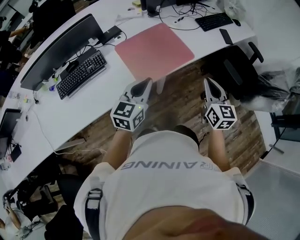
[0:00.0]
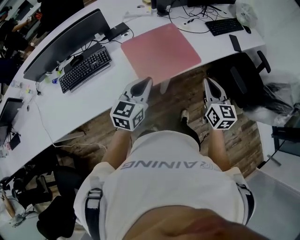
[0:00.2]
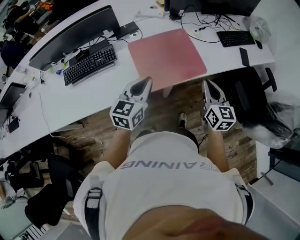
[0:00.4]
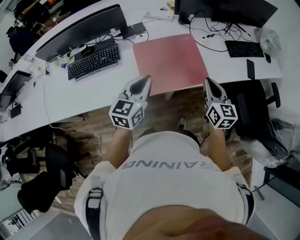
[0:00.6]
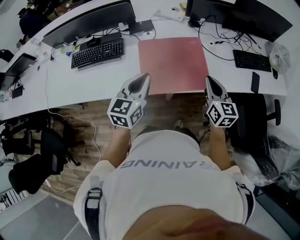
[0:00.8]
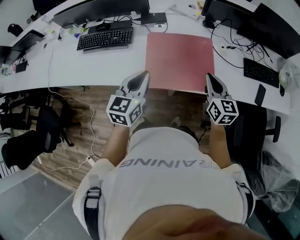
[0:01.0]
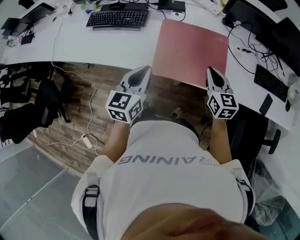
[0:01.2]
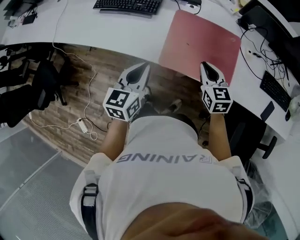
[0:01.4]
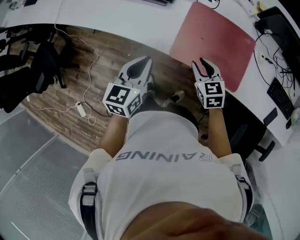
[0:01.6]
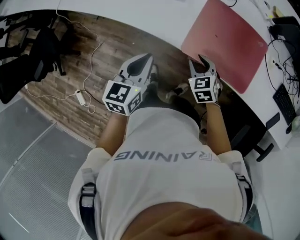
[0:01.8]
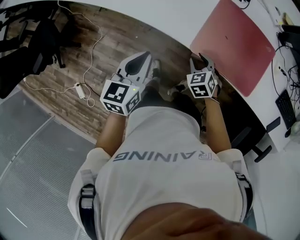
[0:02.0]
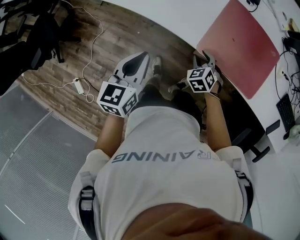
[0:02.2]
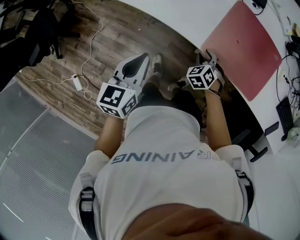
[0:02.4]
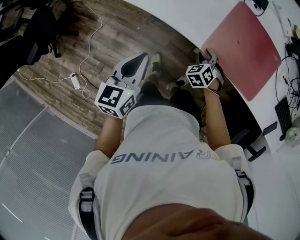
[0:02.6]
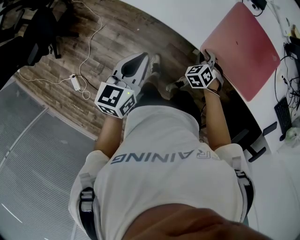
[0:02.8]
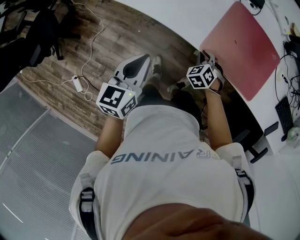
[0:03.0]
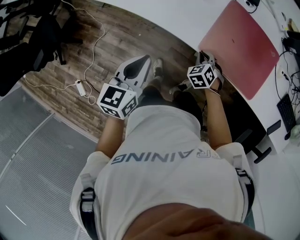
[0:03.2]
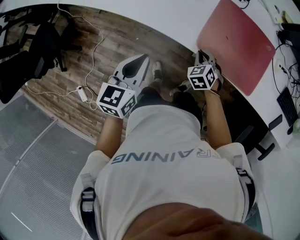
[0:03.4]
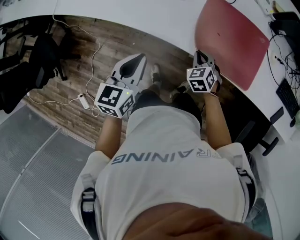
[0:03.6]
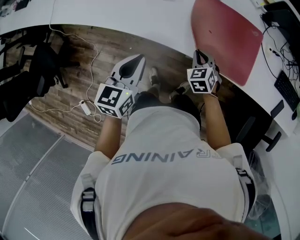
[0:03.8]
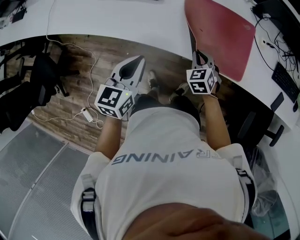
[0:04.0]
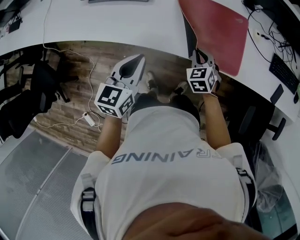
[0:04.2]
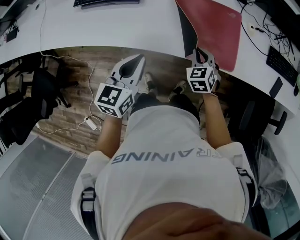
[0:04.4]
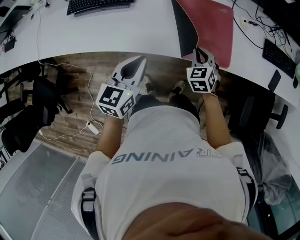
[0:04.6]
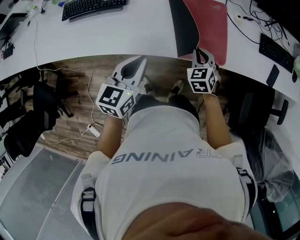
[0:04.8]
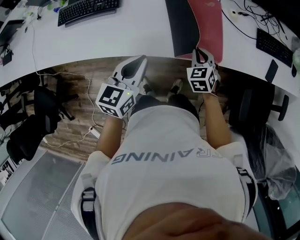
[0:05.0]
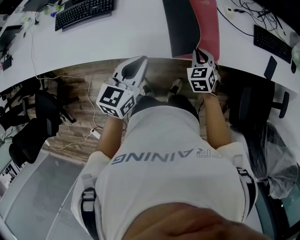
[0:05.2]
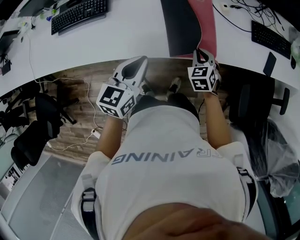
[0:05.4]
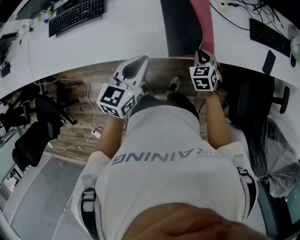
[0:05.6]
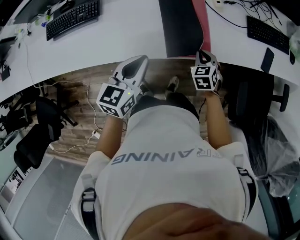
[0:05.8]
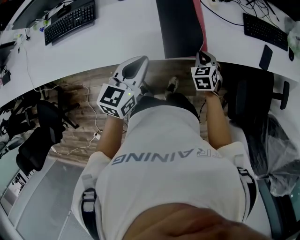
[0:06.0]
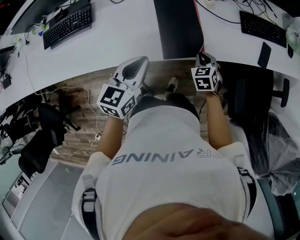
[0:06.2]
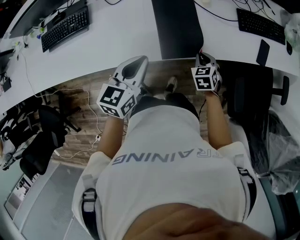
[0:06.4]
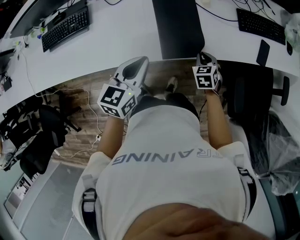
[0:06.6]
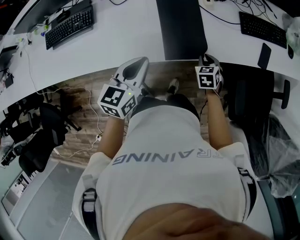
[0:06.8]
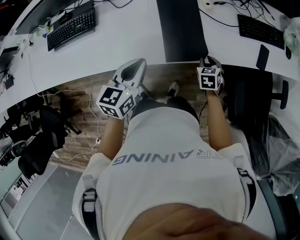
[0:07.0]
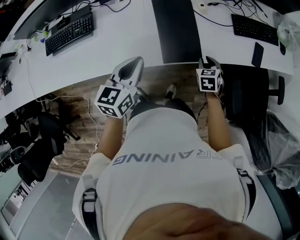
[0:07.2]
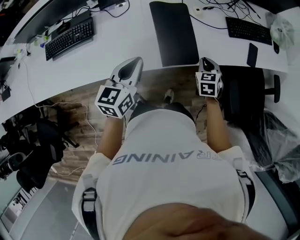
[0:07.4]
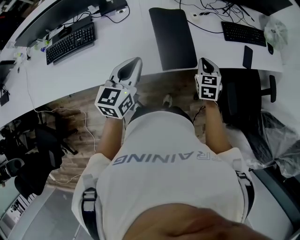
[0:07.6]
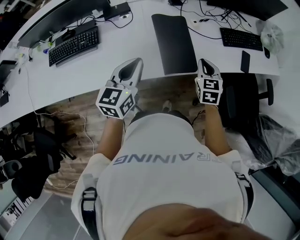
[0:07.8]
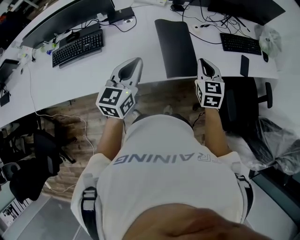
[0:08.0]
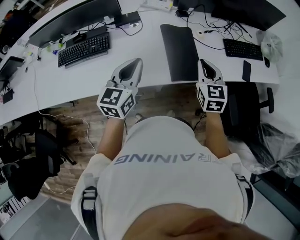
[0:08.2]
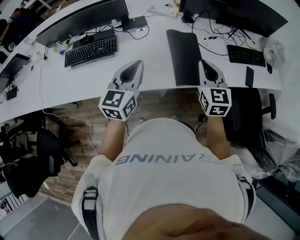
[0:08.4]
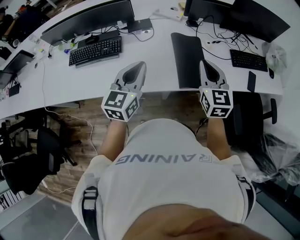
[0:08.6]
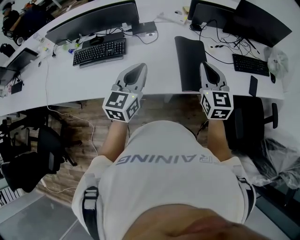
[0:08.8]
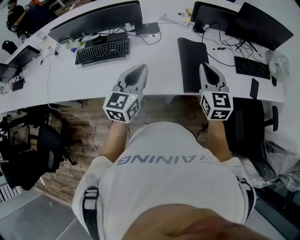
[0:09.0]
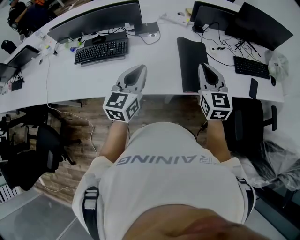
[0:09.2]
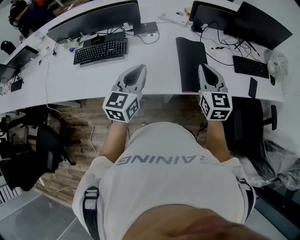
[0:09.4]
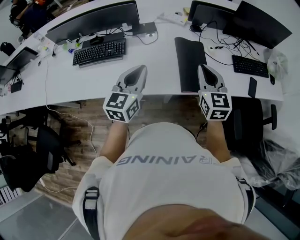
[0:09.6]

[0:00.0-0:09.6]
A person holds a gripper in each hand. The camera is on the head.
0:00.0 to 0:01.6: The left gripper travels downward by about 10 cm, and changes its angle by roughly 60 degrees; the right gripper changes place by about 30 cm, turns by about 70 degrees, and opens.
0:01.6 to 0:03.2: The right gripper moves downward and to the left, about 20 cm, turns by roughly 30 degrees, and closes its fingers. Meanwhile the left gripper travels to the left and downward by about 15 cm.
0:03.2 to 0:04.8: The right gripper heads to the right and upward, covering roughly 25 cm, and swivels approximately 40 degrees, while the left gripper travels to the right and forward by about 20 cm, and rotates approximately 30 degrees.
0:04.8 to 0:06.4: The right gripper goes some 20 cm to the right, while the left gripper travels to the right and forward by roughly 15 cm.
0:06.4 to 0:08.0: The right gripper goes about 25 cm upward, and changes its angle by some 30 degrees. Meanwhile the left gripper heads upward and to the left, covering approximately 15 cm.
0:08.0 to 0:09.6: The left gripper travels to the left by some 5 cm. The right gripper heads to the left and upward, covering some 15 cm.

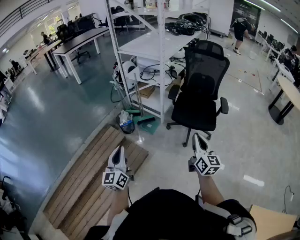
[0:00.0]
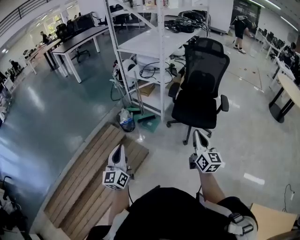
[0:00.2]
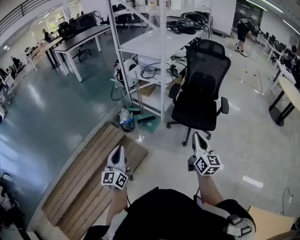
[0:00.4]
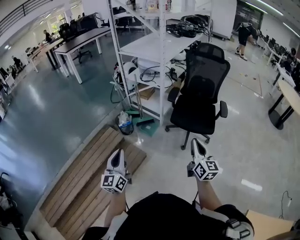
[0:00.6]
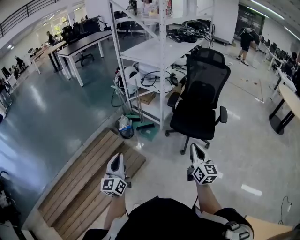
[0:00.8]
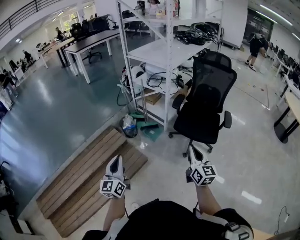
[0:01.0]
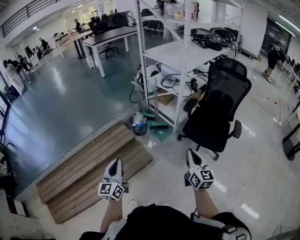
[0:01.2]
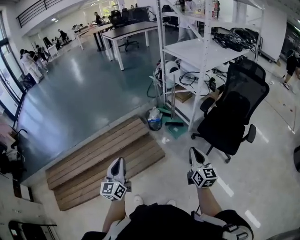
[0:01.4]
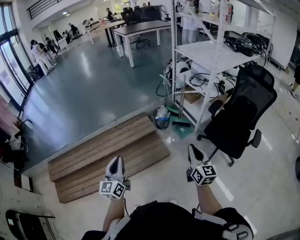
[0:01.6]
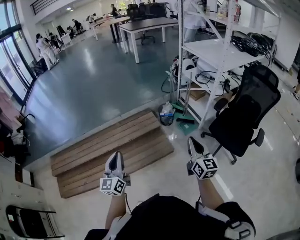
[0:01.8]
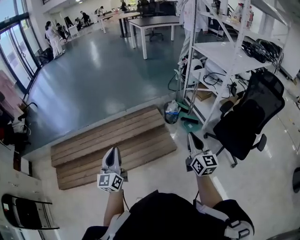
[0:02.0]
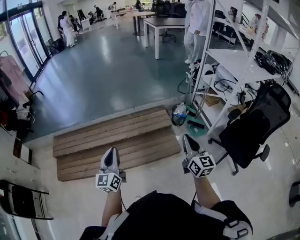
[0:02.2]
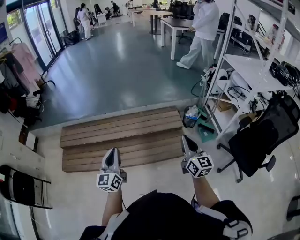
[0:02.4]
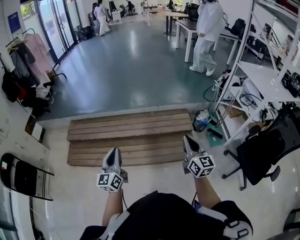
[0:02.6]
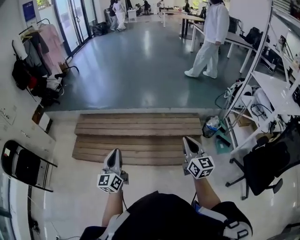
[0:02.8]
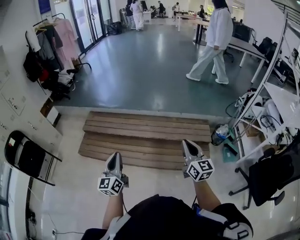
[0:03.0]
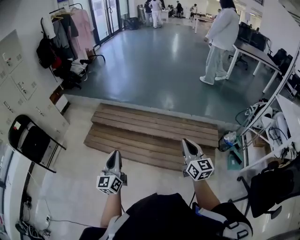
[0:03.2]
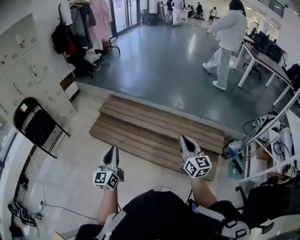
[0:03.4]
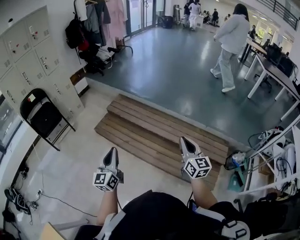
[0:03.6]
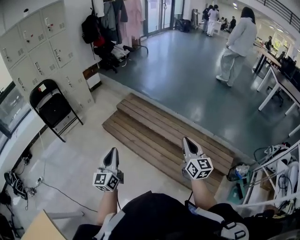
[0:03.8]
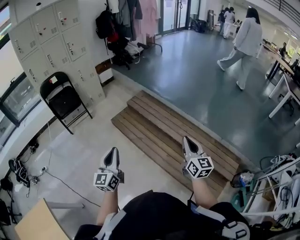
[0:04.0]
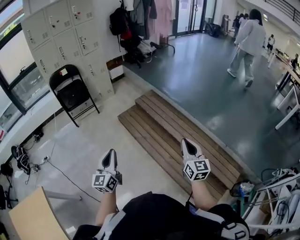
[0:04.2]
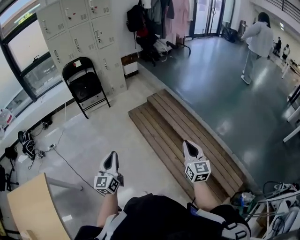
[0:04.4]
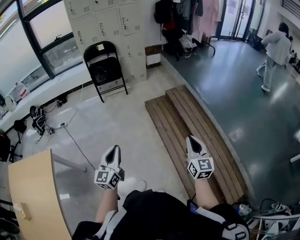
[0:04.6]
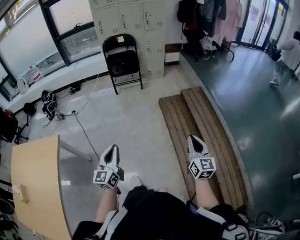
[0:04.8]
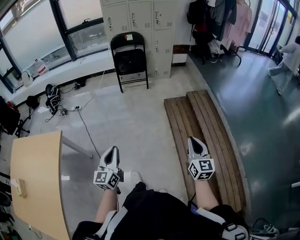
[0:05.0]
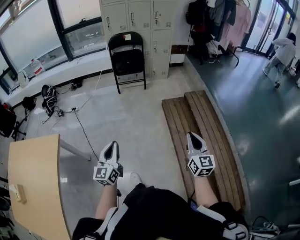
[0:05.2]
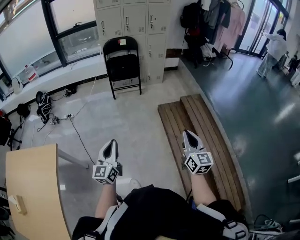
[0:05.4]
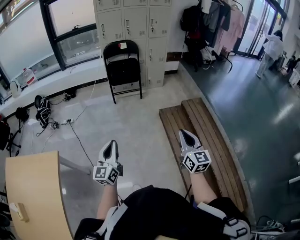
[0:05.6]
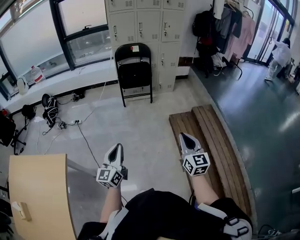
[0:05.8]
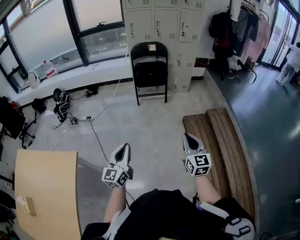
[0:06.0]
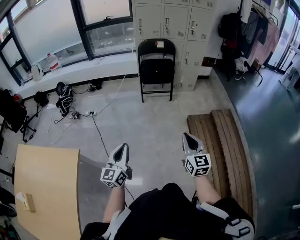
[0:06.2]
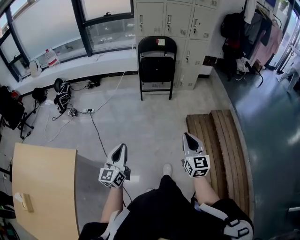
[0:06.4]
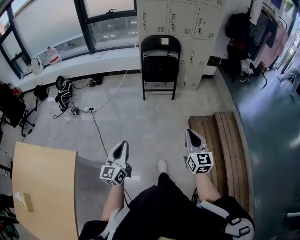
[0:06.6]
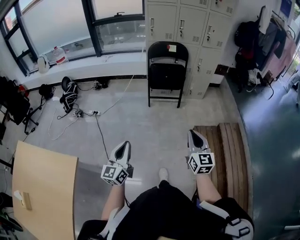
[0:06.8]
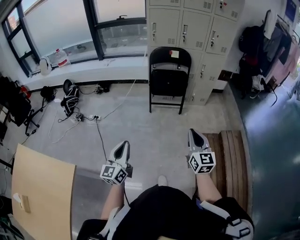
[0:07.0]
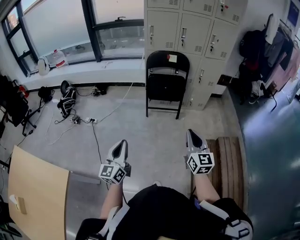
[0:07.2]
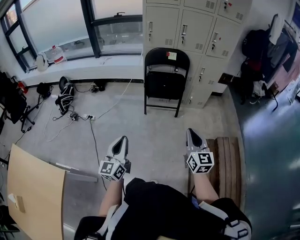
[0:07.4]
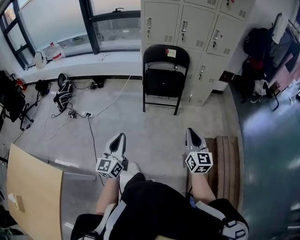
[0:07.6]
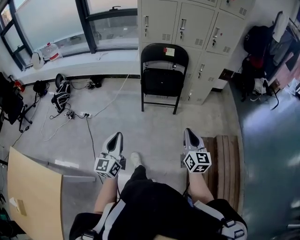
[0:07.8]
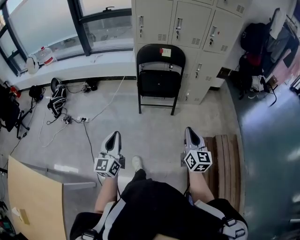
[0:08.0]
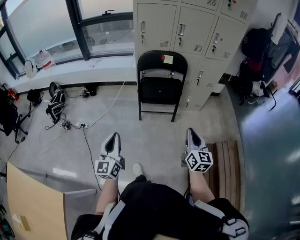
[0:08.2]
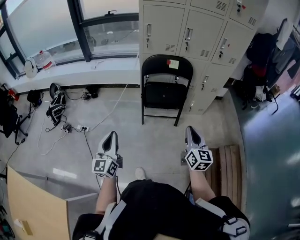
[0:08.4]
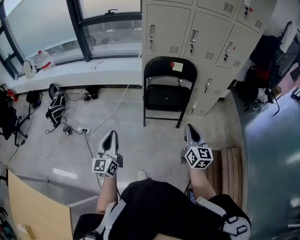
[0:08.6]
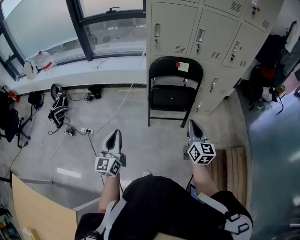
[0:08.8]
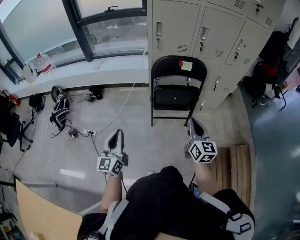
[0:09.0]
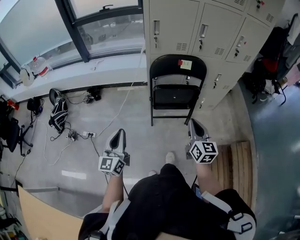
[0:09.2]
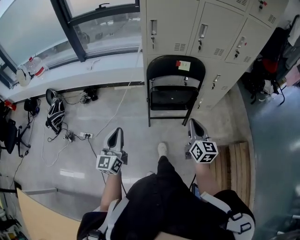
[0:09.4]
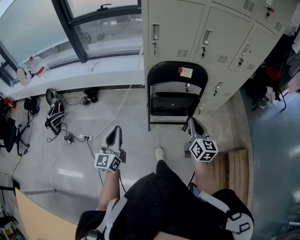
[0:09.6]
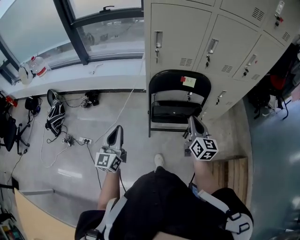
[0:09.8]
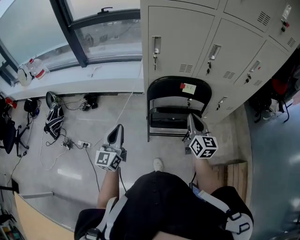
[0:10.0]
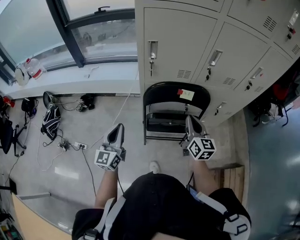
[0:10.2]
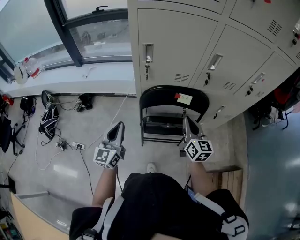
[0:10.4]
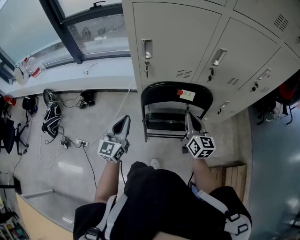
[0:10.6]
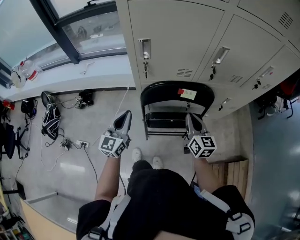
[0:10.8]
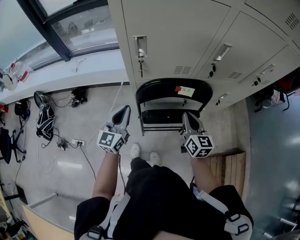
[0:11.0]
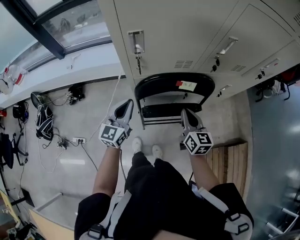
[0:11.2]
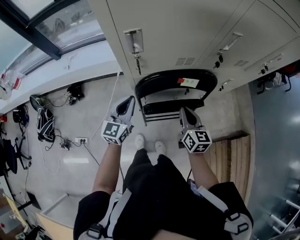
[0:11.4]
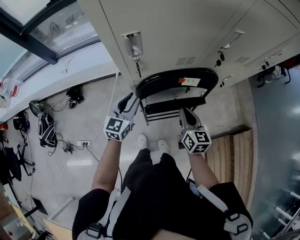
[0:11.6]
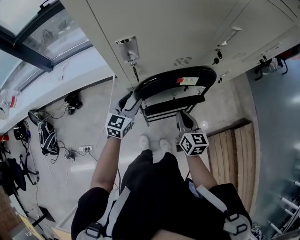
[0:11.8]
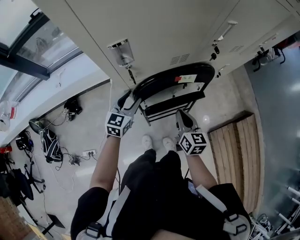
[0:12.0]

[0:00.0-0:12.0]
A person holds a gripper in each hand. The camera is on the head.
0:00.0 to 0:01.6: The right gripper ends up some 15 cm from where it was, and turns by about 30 degrees, while the left gripper shifts by roughly 15 cm, and turns by approximately 30 degrees.
0:01.6 to 0:03.0: The two grippers travel together, approximately 40 cm. The left gripper rotates about 40 degrees. Meanwhile the right gripper turns by about 40 degrees.
0:03.0 to 0:04.4: The left gripper moves roughly 20 cm, and swivels some 50 degrees; the right gripper ends up about 25 cm from where it was, and rotates approximately 50 degrees.
0:04.4 to 0:06.0: The right gripper goes some 50 cm to the left and forward, and swivels approximately 30 degrees; the left gripper is displaced to the left by some 30 cm.
0:06.0 to 0:07.6: Both grippers move forward, about 35 cm.
0:07.6 to 0:09.0: Both grippers move forward and to the left, roughly 30 cm.
0:09.0 to 0:10.4: The two grippers go about 30 cm forward.
0:10.4 to 0:12.0: The right gripper moves downward and to the left, some 15 cm, and turns by about 20 degrees. The left gripper moves forward and downward, some 25 cm, changes its angle by some 40 degrees, and opens.

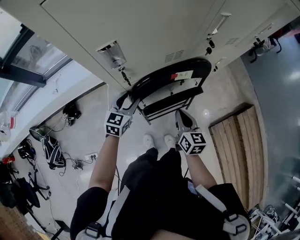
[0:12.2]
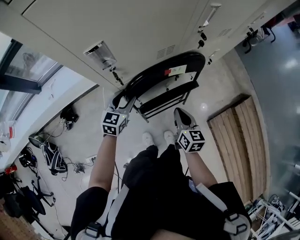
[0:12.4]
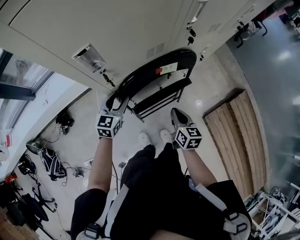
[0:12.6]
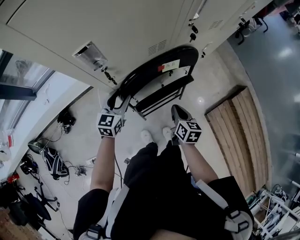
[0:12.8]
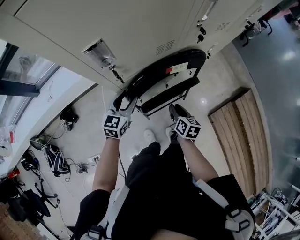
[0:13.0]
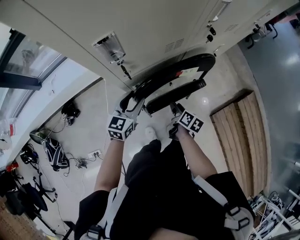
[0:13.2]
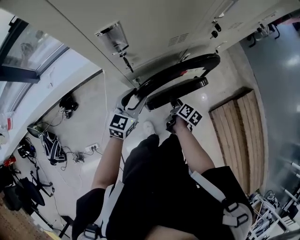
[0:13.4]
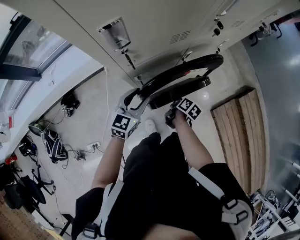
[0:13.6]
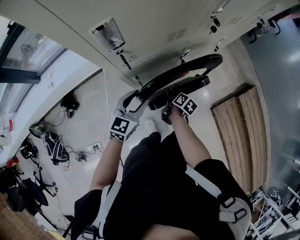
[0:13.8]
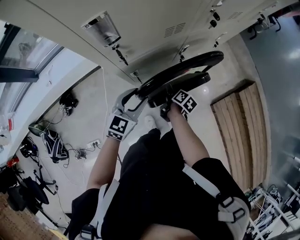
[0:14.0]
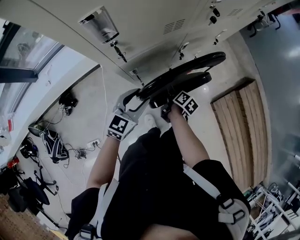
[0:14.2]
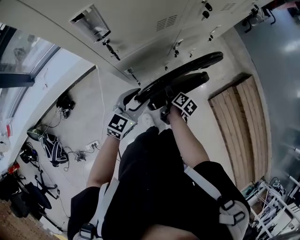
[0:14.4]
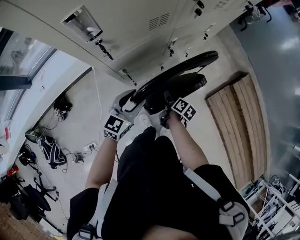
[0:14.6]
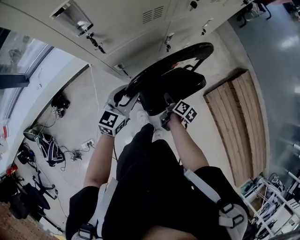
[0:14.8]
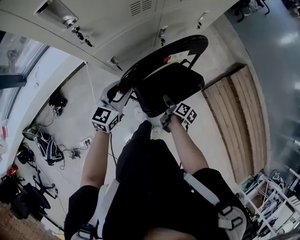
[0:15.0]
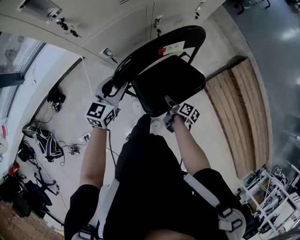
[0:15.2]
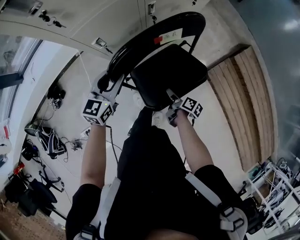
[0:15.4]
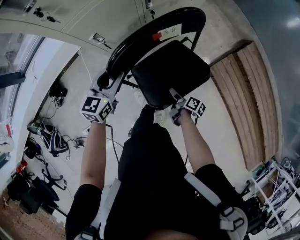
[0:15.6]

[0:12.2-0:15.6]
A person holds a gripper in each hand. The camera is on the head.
0:12.2 to 0:13.8: The left gripper is displaced backward by about 5 cm; the right gripper travels downward by about 15 cm, twists some 40 degrees clockwise, seen from behind, and opens its fingers.
0:13.8 to 0:15.6: The right gripper goes about 30 cm backward, to the right and downward, and changes its angle by some 20 degrees; the left gripper travels to the right and backward by roughly 10 cm.
